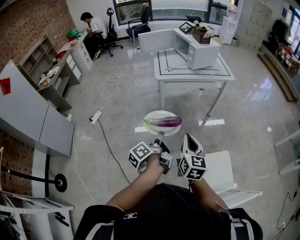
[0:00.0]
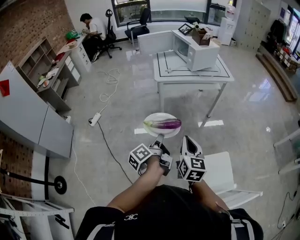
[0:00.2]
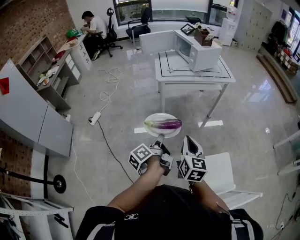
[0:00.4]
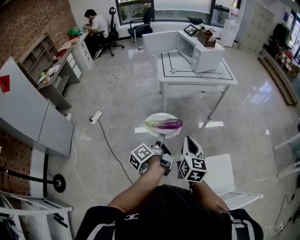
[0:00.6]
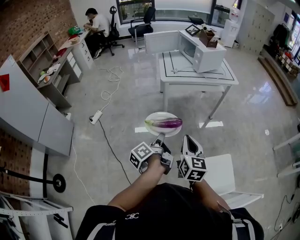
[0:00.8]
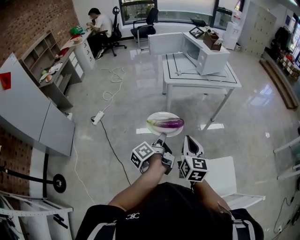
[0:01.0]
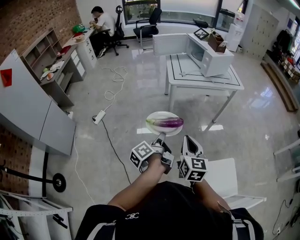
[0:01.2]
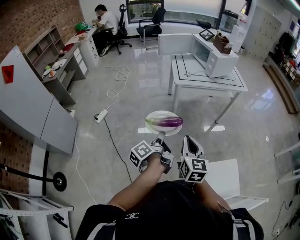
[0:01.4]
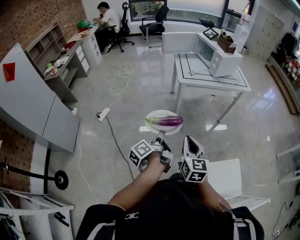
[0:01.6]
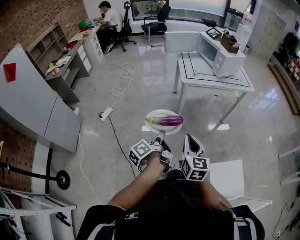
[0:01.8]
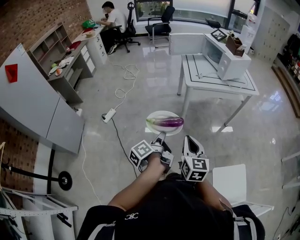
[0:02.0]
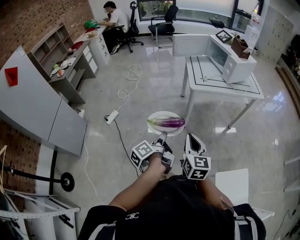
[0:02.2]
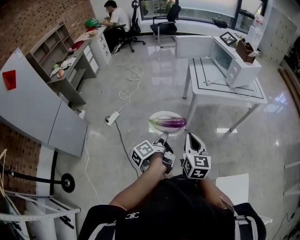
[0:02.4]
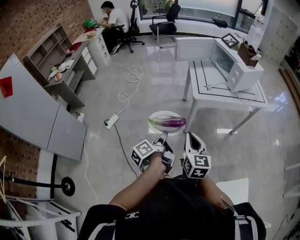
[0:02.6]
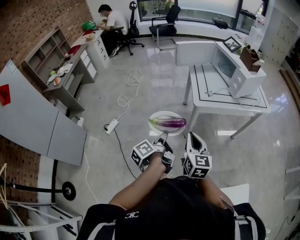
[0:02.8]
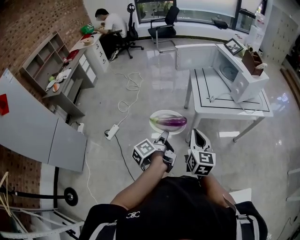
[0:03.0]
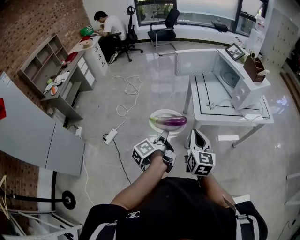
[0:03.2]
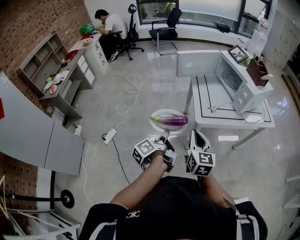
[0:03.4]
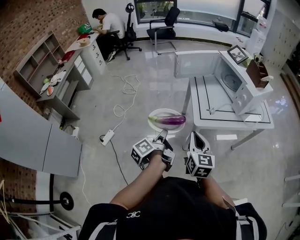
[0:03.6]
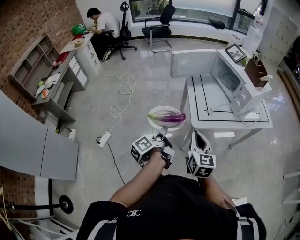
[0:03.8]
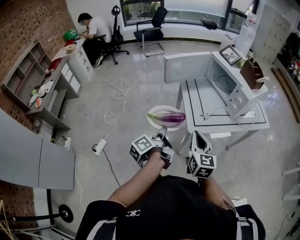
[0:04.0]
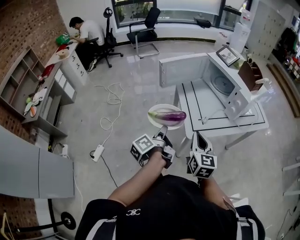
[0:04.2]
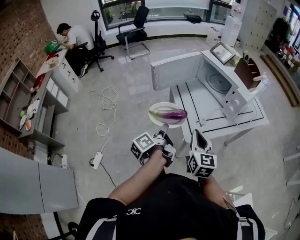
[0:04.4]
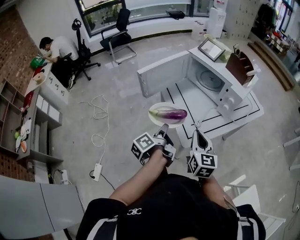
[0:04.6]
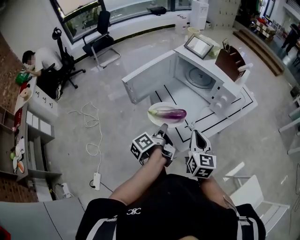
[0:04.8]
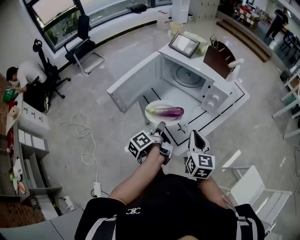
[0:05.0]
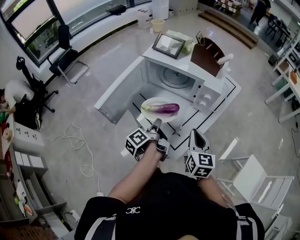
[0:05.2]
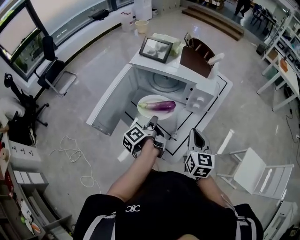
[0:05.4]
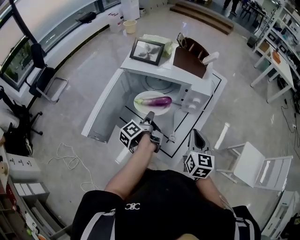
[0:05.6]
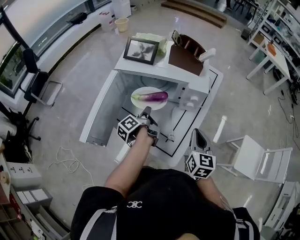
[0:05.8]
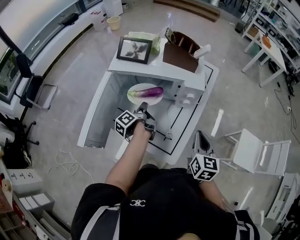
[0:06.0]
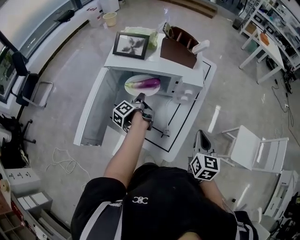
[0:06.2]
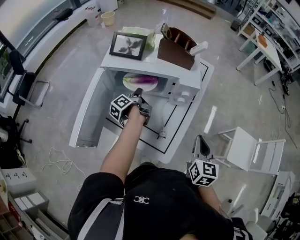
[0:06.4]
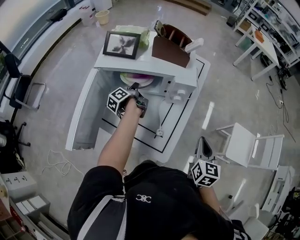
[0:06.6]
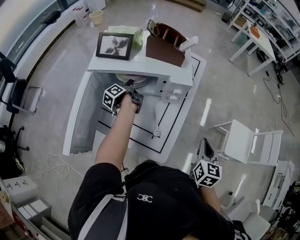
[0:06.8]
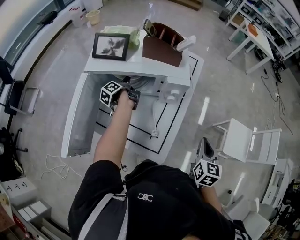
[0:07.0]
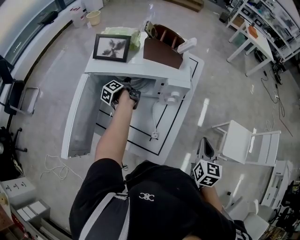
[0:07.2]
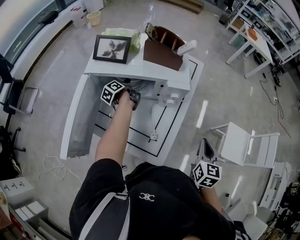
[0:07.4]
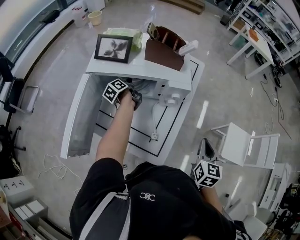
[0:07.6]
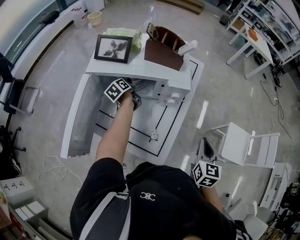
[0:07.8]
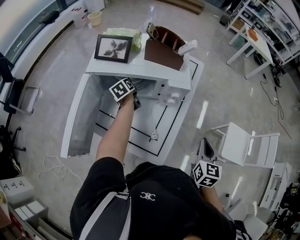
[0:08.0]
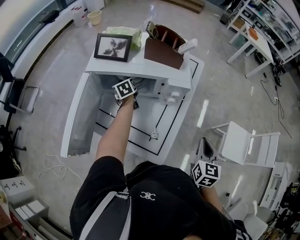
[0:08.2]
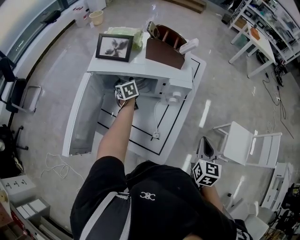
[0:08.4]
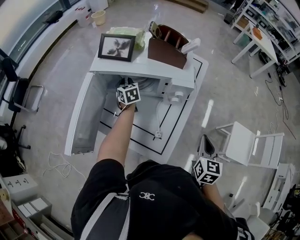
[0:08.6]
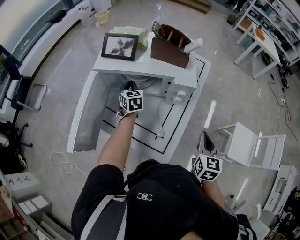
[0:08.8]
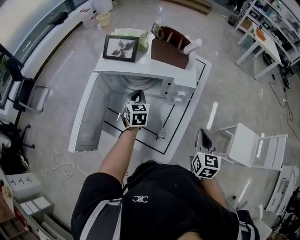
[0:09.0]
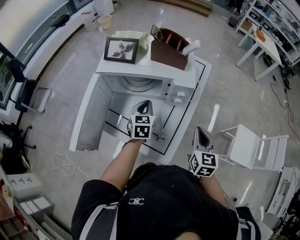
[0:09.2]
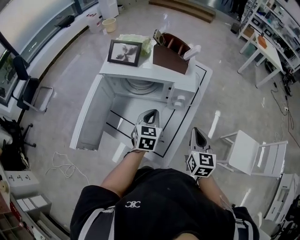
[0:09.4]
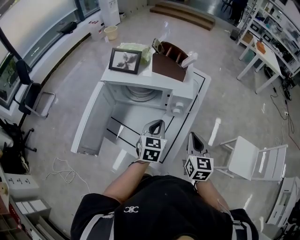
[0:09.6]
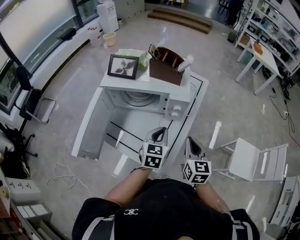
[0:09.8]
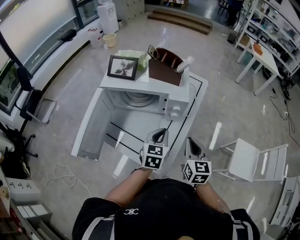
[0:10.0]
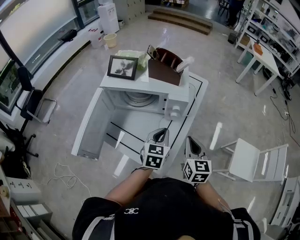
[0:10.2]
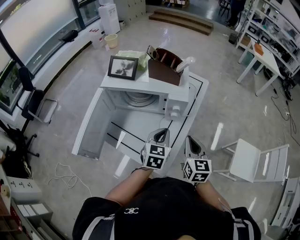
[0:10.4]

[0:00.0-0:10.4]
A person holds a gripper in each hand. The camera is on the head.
0:00.0 to 0:01.4: The right gripper shifts by roughly 15 cm.
0:01.4 to 0:03.0: The right gripper moves roughly 35 cm.
0:03.0 to 0:04.4: The right gripper moves approximately 25 cm.
0:04.4 to 0:06.0: The right gripper moves approximately 20 cm, and changes its angle by roughly 50 degrees.
0:06.0 to 0:07.4: The right gripper shifts by some 10 cm.
0:07.4 to 0:09.0: The right gripper moves about 5 cm.

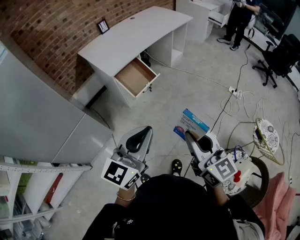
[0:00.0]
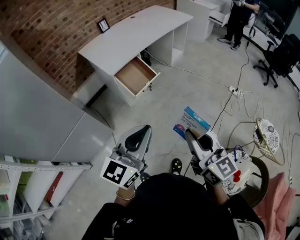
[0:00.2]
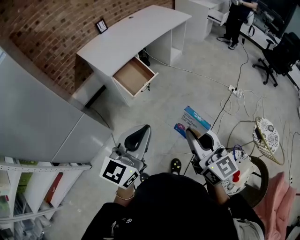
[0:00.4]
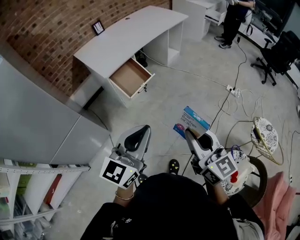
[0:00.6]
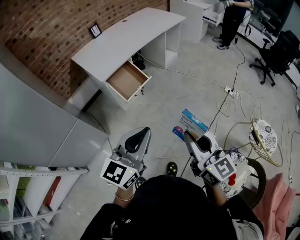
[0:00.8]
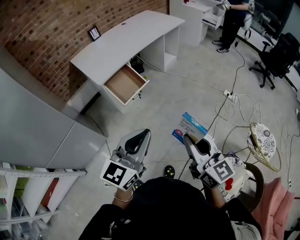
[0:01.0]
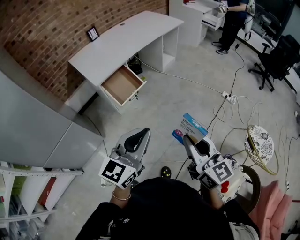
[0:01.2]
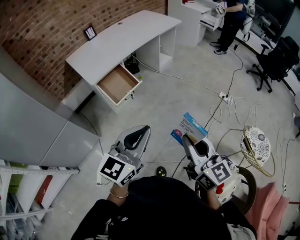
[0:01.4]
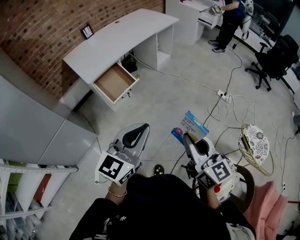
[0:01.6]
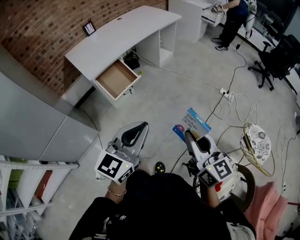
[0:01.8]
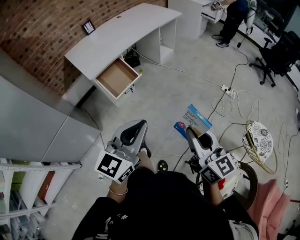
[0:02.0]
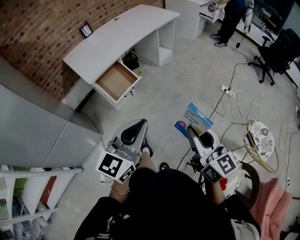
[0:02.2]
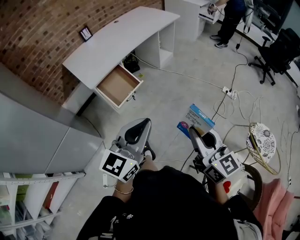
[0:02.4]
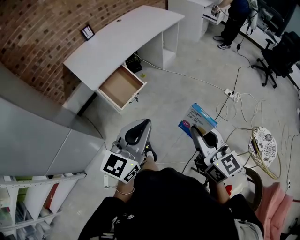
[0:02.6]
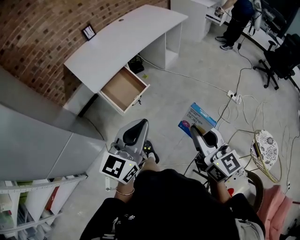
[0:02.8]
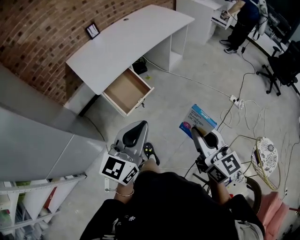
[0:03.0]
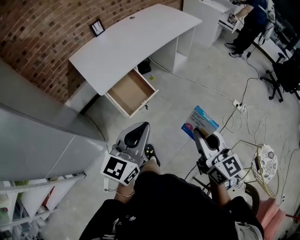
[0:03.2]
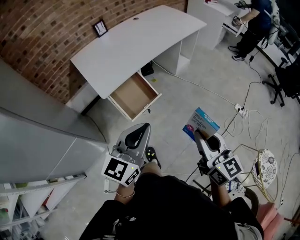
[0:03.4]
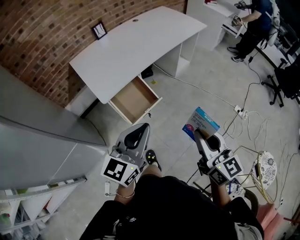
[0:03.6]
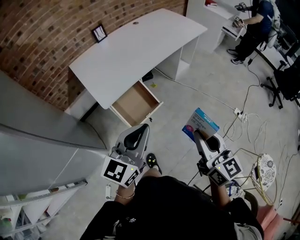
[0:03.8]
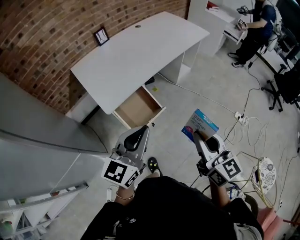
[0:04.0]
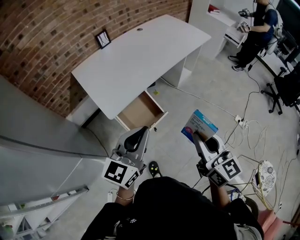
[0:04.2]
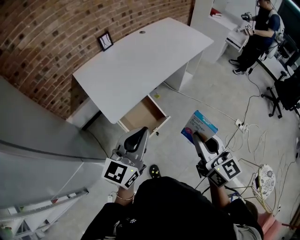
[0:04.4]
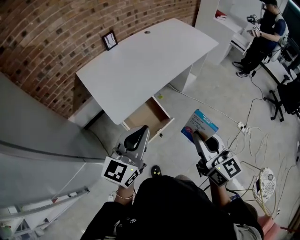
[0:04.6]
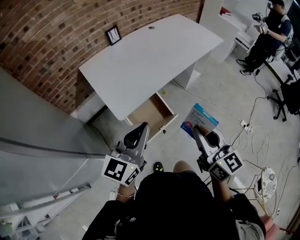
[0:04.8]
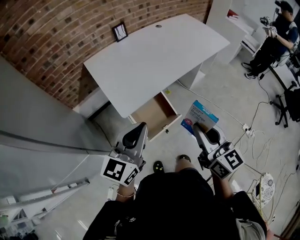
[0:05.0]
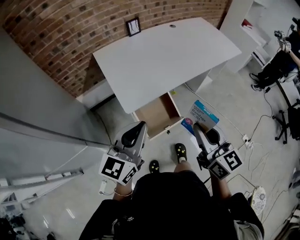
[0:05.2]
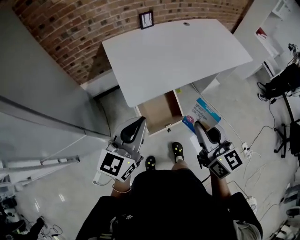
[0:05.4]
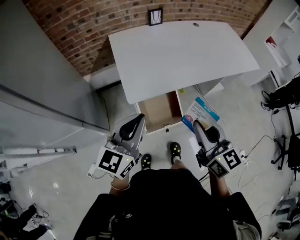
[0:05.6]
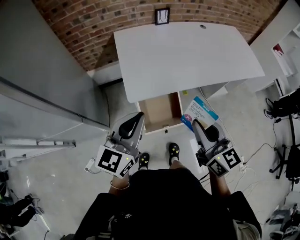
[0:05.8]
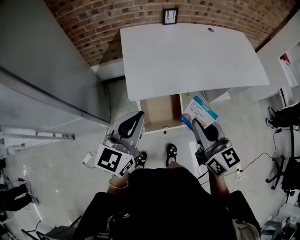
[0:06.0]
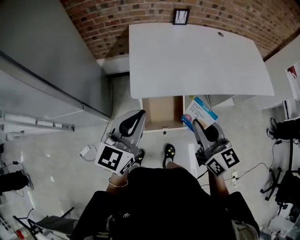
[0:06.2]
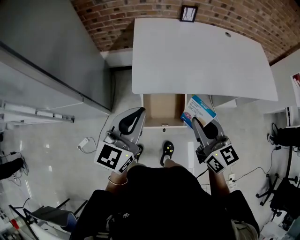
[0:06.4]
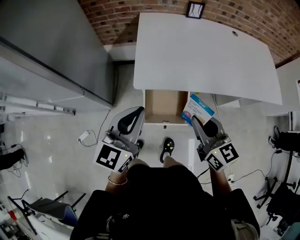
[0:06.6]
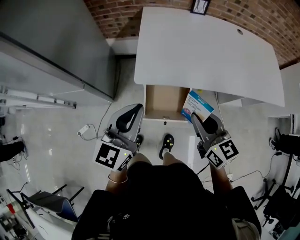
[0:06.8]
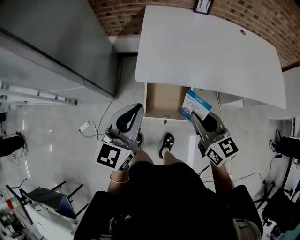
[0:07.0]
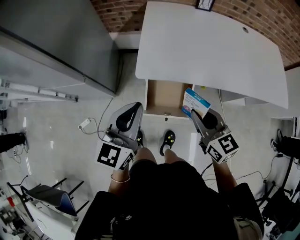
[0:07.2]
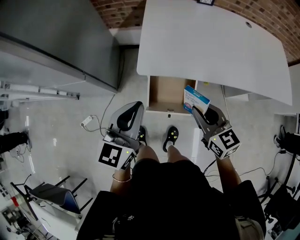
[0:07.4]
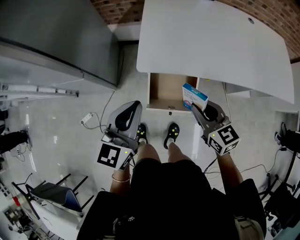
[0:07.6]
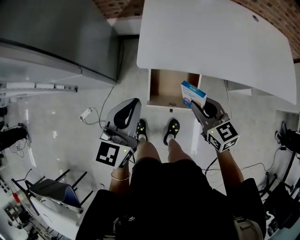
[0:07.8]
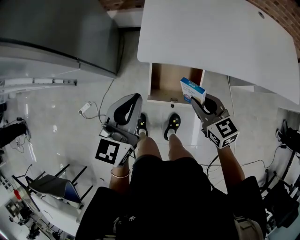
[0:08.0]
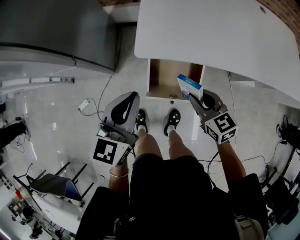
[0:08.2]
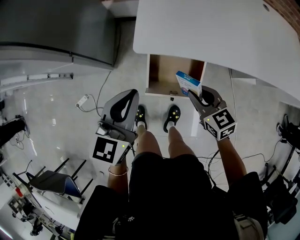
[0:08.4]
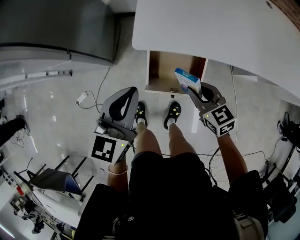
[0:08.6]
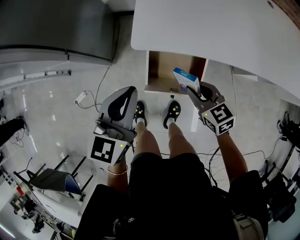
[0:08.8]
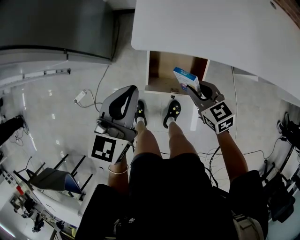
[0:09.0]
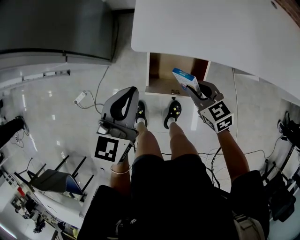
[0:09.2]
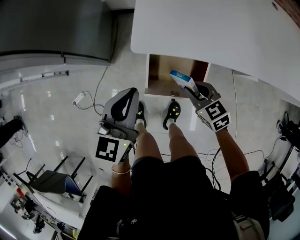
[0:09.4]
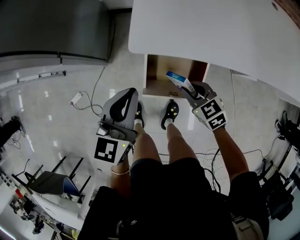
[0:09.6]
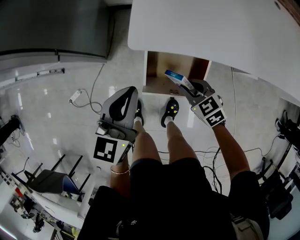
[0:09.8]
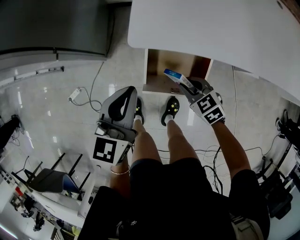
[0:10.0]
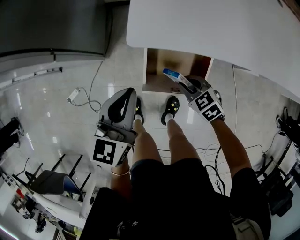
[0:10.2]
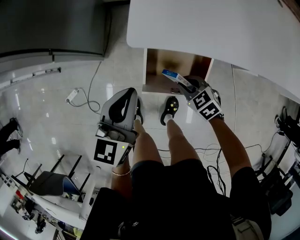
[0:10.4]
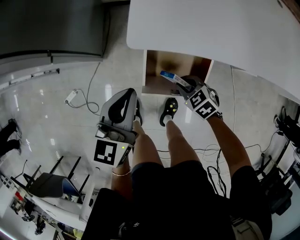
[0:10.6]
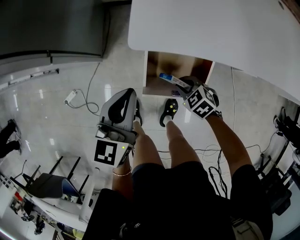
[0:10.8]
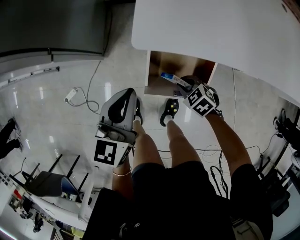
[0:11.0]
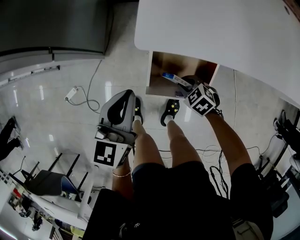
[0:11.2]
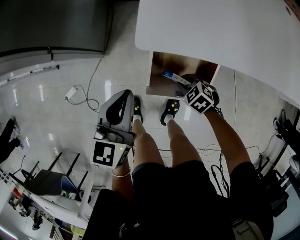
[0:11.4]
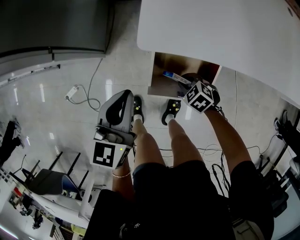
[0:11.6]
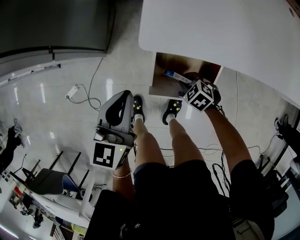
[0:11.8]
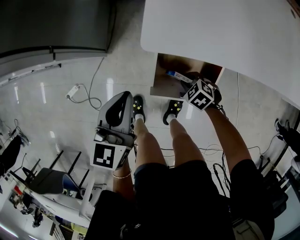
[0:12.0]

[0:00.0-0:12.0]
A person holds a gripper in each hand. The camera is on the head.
0:00.0 to 0:01.6: Both grippers travel together to the right, about 15 cm.
0:01.6 to 0:03.0: Both grippers move forward and to the left, approximately 20 cm.
0:03.0 to 0:04.4: The two grippers go about 25 cm forward and to the left.
0:04.4 to 0:06.0: The right gripper changes place by roughly 20 cm, and changes its angle by some 40 degrees. Meanwhile the left gripper moves approximately 10 cm, and rotates roughly 30 degrees.
0:06.0 to 0:07.6: The left gripper goes about 10 cm downward, and swivels some 20 degrees. Meanwhile the right gripper moves downward, about 15 cm, and turns by about 30 degrees.
0:07.6 to 0:09.0: The right gripper shifts roughly 15 cm downward. Meanwhile the left gripper heads downward, covering some 10 cm.
0:09.0 to 0:10.4: The right gripper is displaced downward by roughly 15 cm, and changes its angle by some 20 degrees. The left gripper shifts some 5 cm downward.
0:10.4 to 0:12.0: The left gripper shifts by approximately 5 cm. The right gripper goes some 10 cm downward.

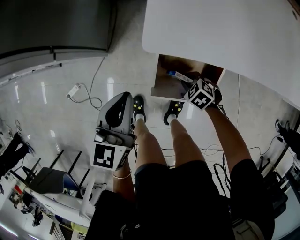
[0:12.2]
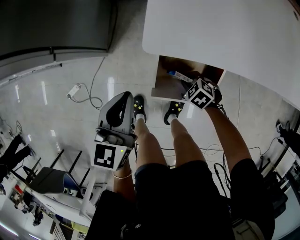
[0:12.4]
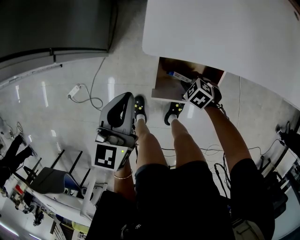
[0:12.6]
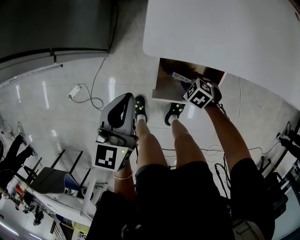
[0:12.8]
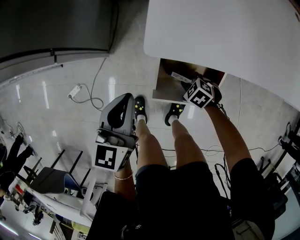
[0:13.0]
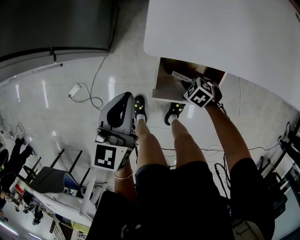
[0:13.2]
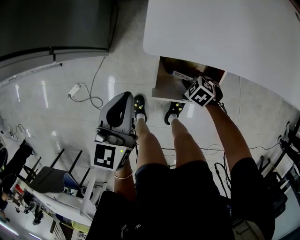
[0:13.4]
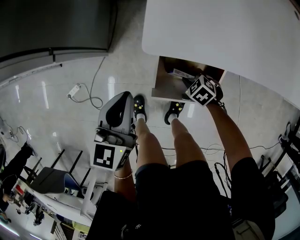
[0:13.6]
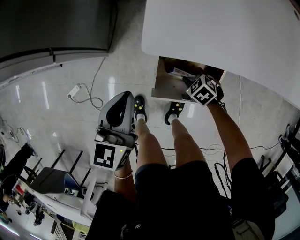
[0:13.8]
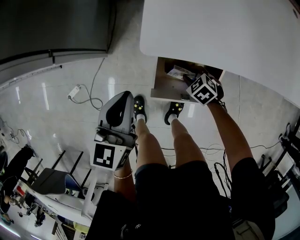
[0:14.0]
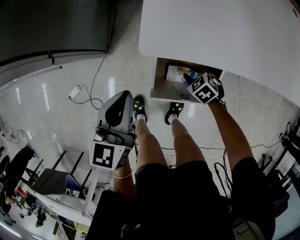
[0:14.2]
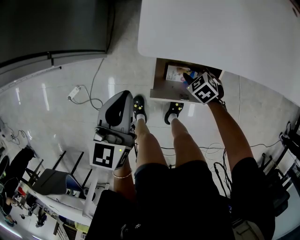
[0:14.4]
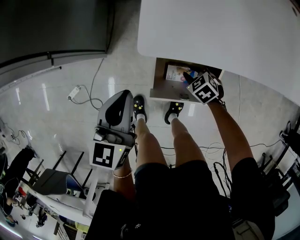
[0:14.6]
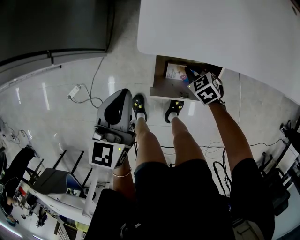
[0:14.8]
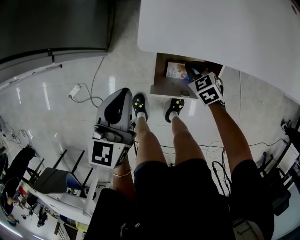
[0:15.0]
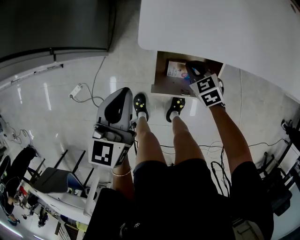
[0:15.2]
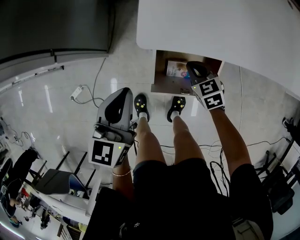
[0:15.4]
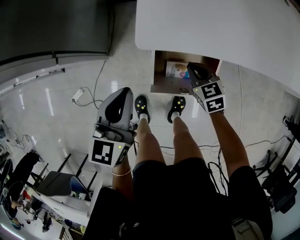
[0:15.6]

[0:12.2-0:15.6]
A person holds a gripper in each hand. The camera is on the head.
0:12.2 to 0:13.8: The grippers stay close to where they were, moving slightly.
0:13.8 to 0:15.6: The right gripper goes about 10 cm upward, rotates roughly 40 degrees, and closes.
